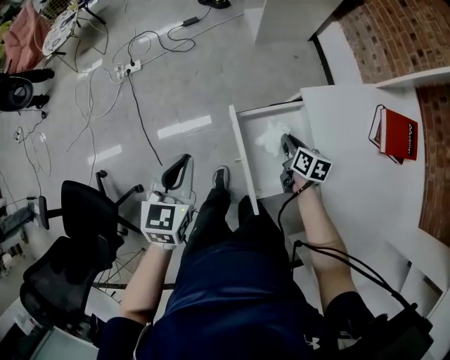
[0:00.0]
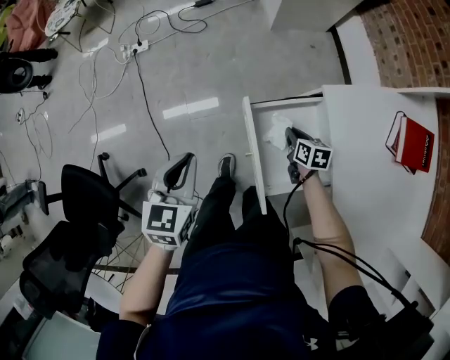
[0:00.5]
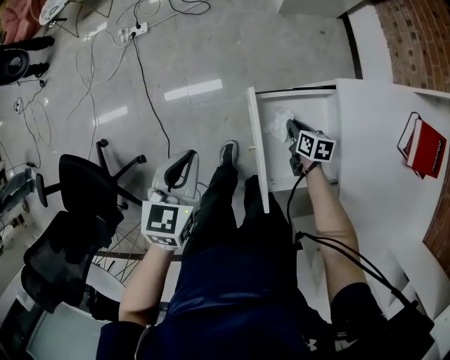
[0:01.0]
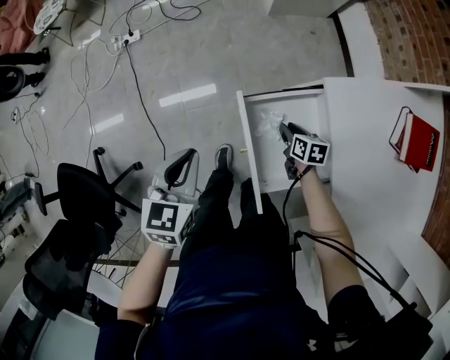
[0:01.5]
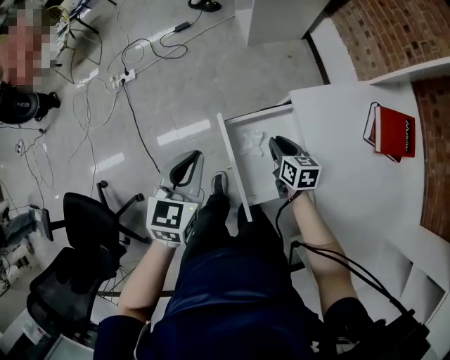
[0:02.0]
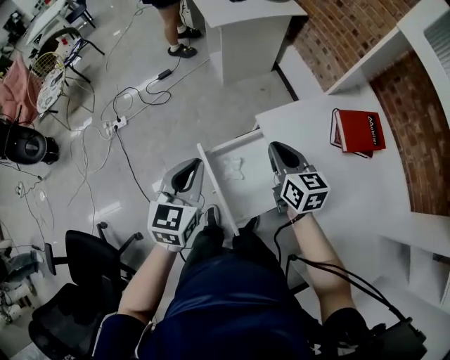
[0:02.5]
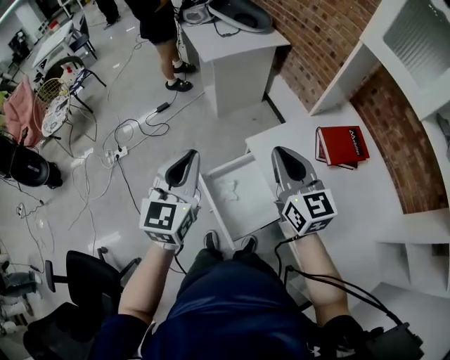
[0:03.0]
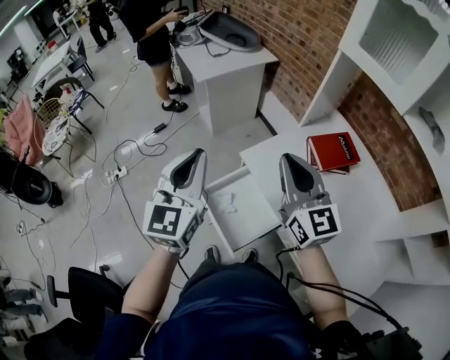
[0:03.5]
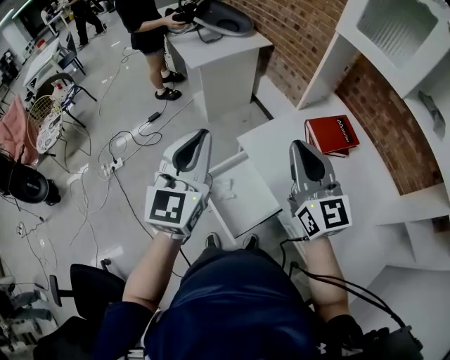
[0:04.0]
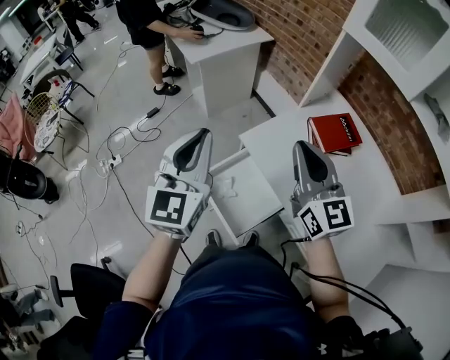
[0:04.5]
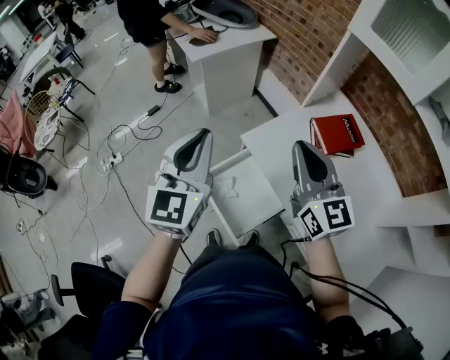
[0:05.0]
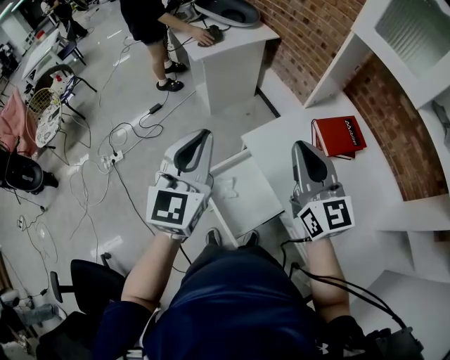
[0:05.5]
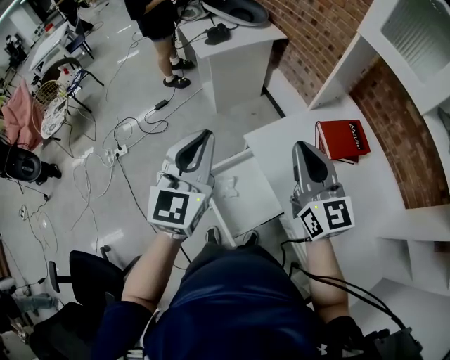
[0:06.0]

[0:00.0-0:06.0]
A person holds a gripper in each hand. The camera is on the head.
0:00.0 to 0:02.0: The right gripper travels downward and back again, roughly 15 cm each way; the left gripper travels to the right by roughly 5 cm.
0:02.0 to 0:04.0: The right gripper travels upward by roughly 40 cm, and points its fingers roughly 50 degrees further upward; the left gripper goes approximately 30 cm upward and to the right, and tilts its fingers about 30 degrees upward.
0:04.0 to 0:06.0: The right gripper ends up some 5 cm from where it was.

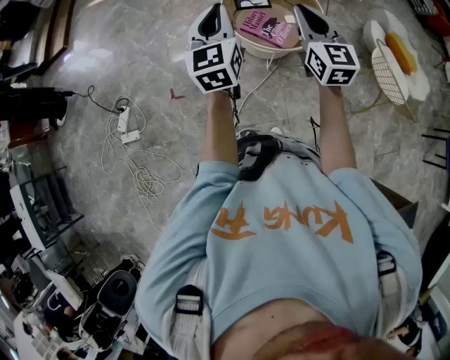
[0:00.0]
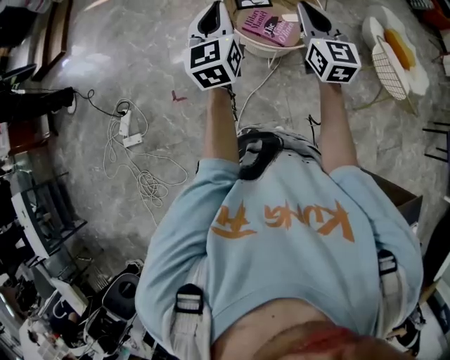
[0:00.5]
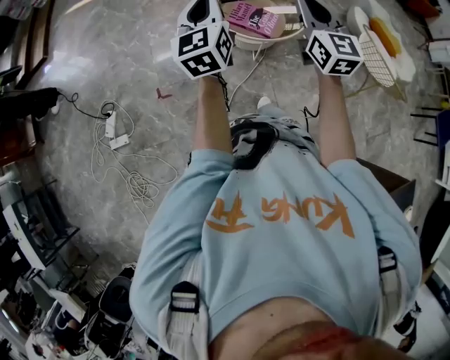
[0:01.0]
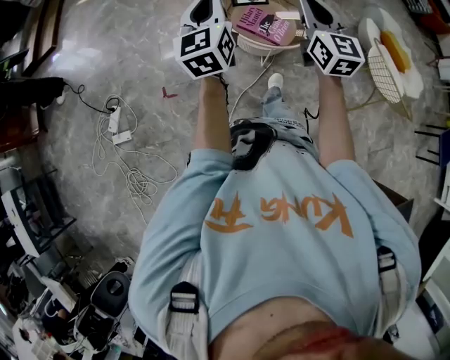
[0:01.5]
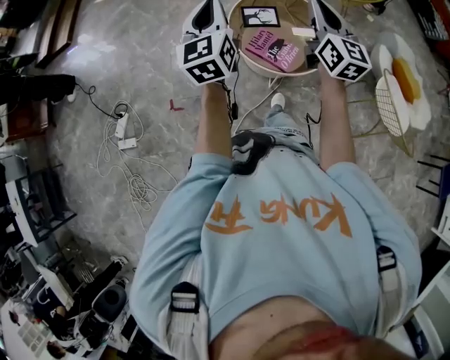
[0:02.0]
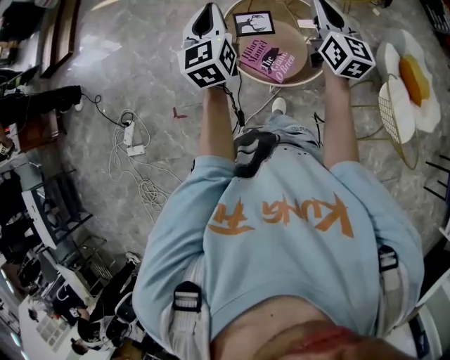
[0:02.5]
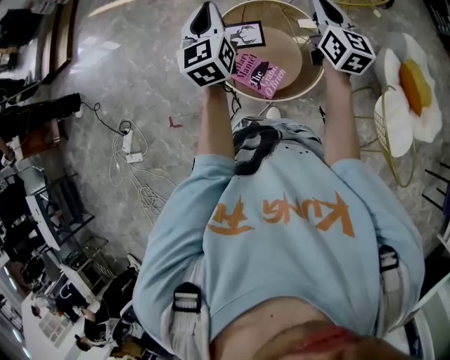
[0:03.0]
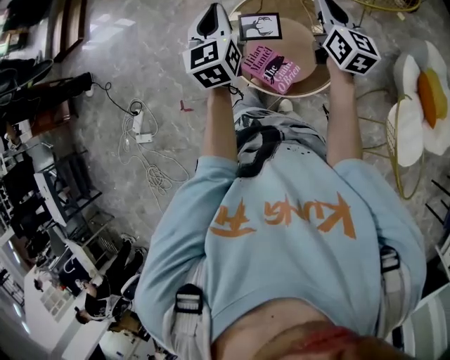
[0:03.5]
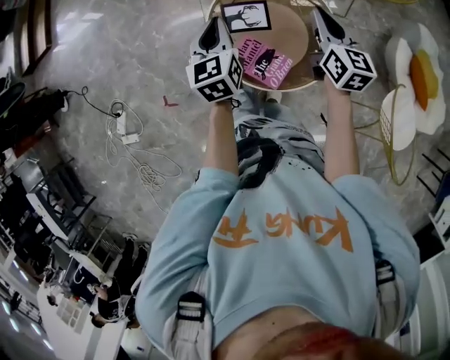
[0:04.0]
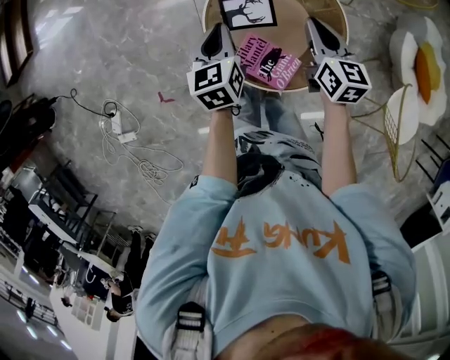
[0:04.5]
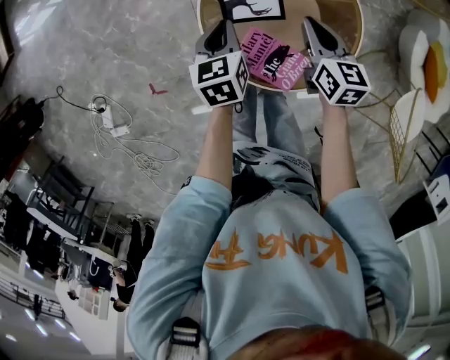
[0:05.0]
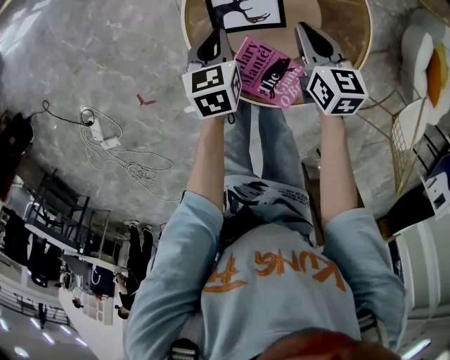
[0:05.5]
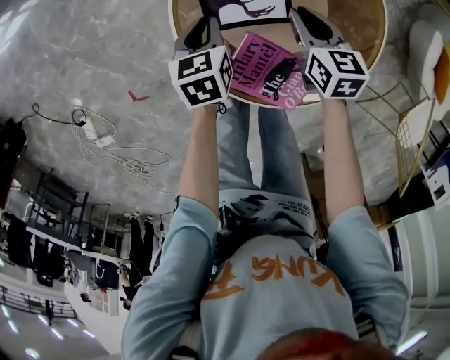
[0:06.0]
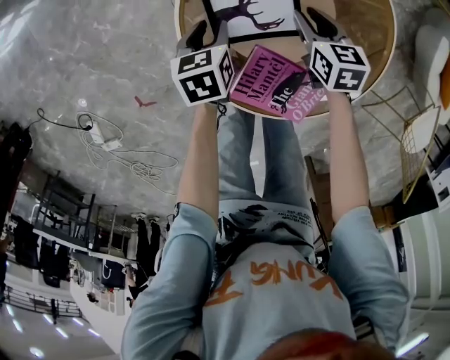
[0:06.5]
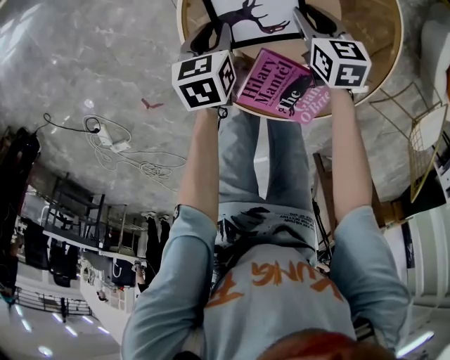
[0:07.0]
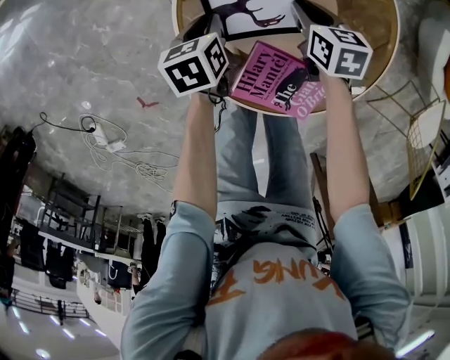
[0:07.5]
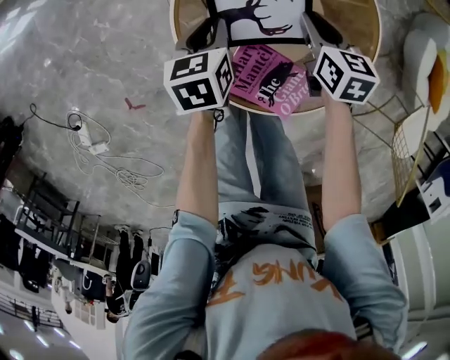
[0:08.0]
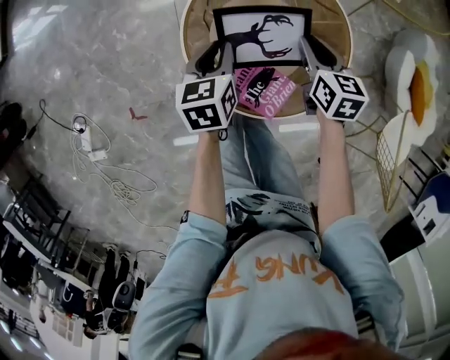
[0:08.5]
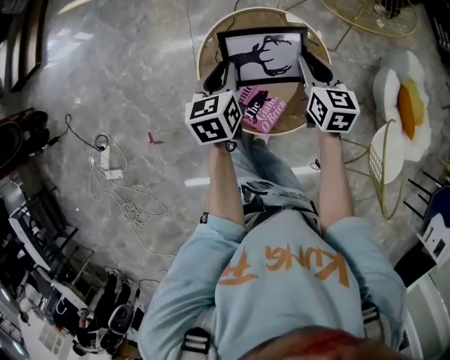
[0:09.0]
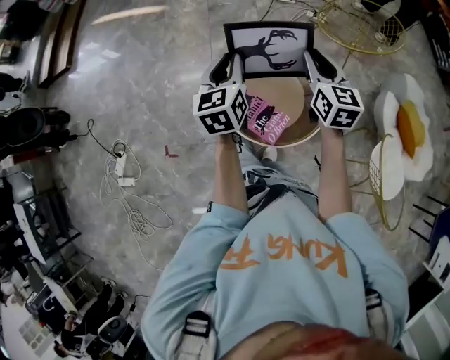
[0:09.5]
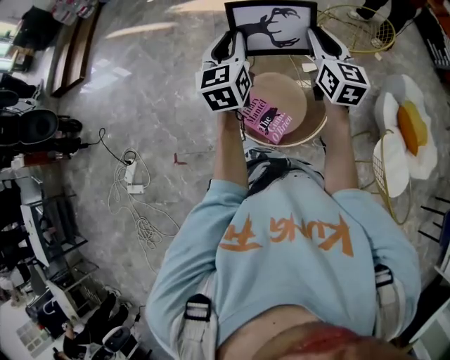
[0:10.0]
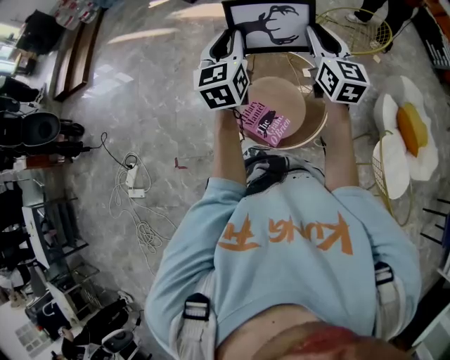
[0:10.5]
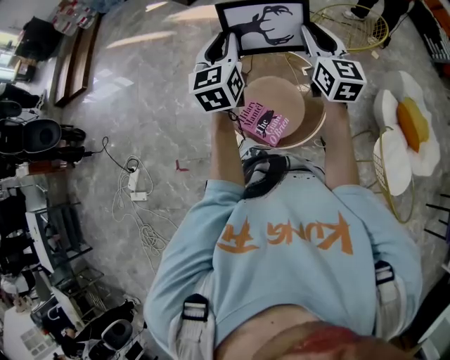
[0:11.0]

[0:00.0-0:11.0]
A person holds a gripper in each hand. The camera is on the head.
0:00.0 to 0:02.0: The two grippers go roughly 15 cm forward.
0:02.0 to 0:03.5: The two grippers go some 30 cm forward and to the right.
0:03.5 to 0:05.5: The grippers both shift downward by approximately 40 cm. The left gripper angles its fingers downward, by approximately 40 degrees; the right gripper tilts its fingers some 40 degrees downward.
0:05.5 to 0:07.5: The two grippers go some 15 cm downward.
0:07.5 to 0:09.0: Both grippers travel together upward, some 35 cm. The left gripper turns by about 30 degrees; the right gripper swivels approximately 30 degrees.
0:09.0 to 0:11.0: The grippers both shift upward by some 30 cm. The right gripper angles its fingers upward, by approximately 30 degrees. Meanwhile the left gripper swivels approximately 30 degrees.

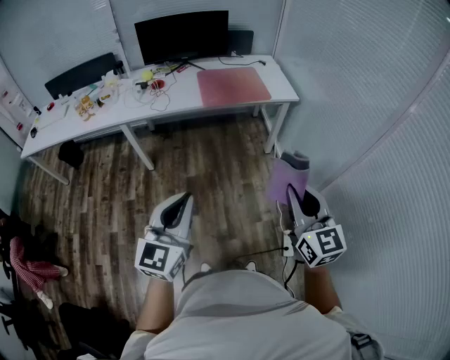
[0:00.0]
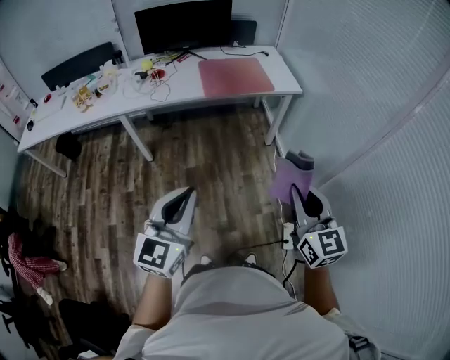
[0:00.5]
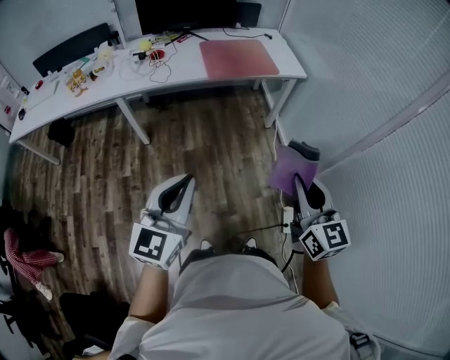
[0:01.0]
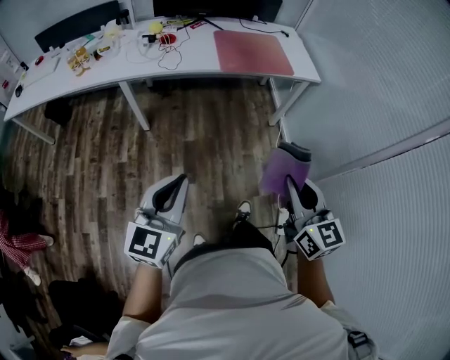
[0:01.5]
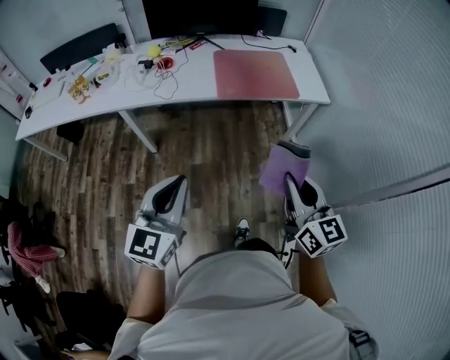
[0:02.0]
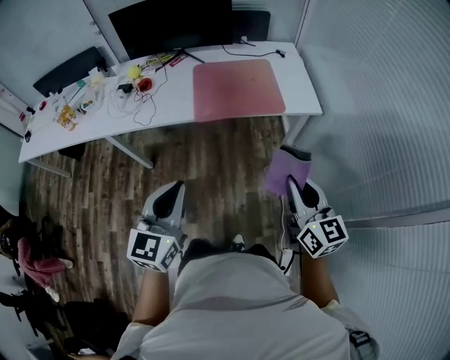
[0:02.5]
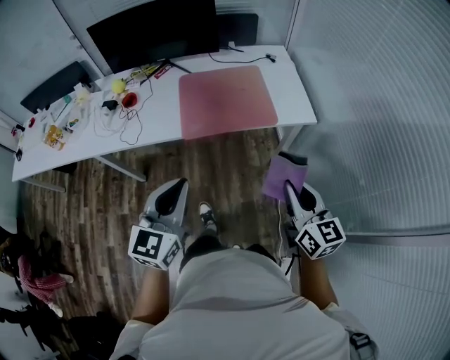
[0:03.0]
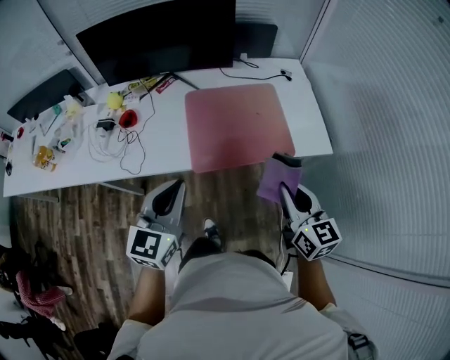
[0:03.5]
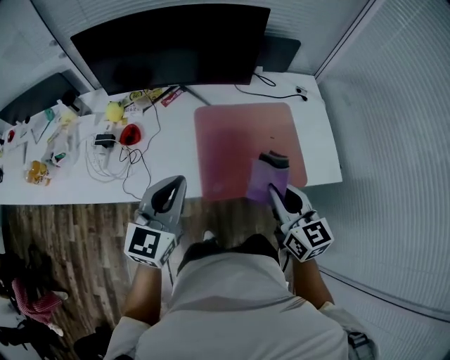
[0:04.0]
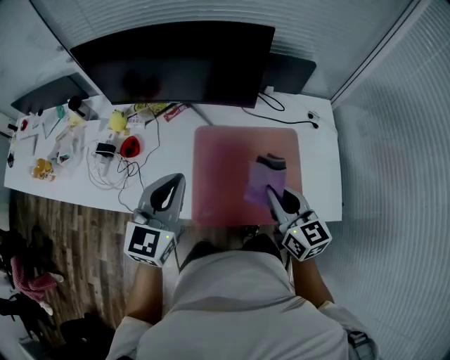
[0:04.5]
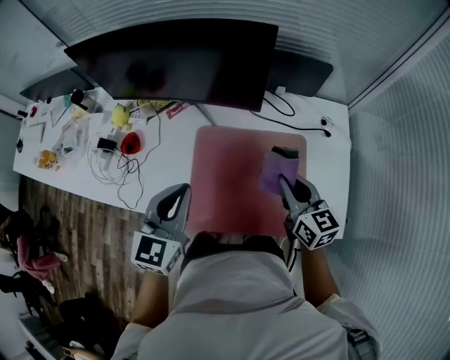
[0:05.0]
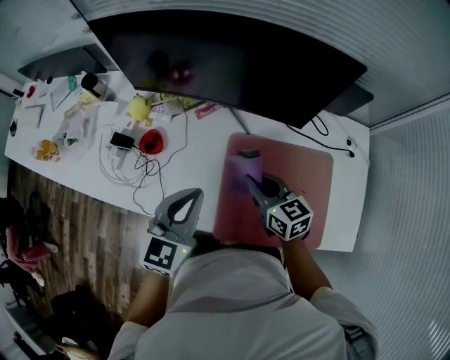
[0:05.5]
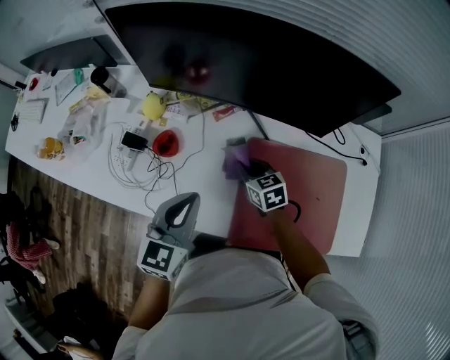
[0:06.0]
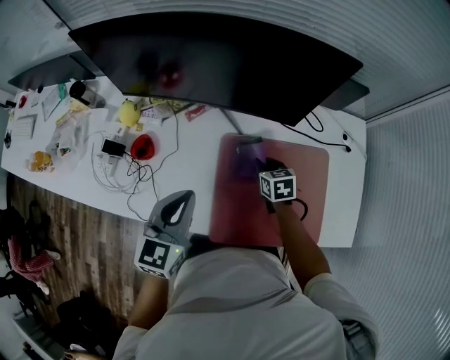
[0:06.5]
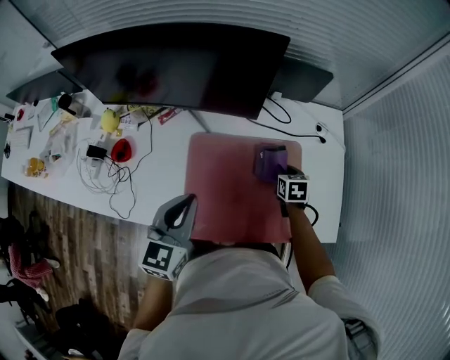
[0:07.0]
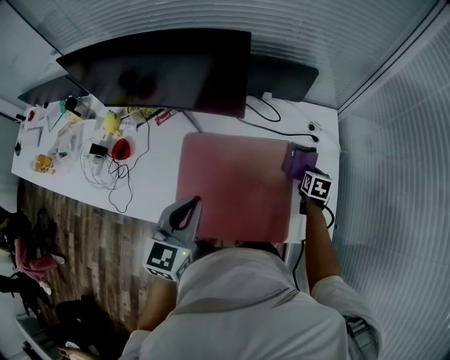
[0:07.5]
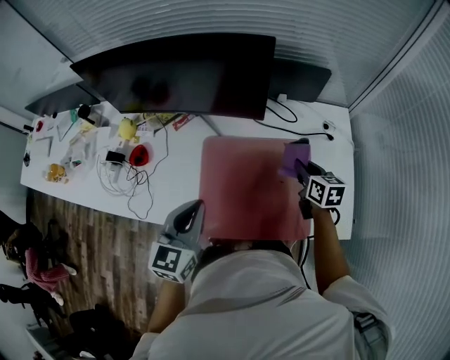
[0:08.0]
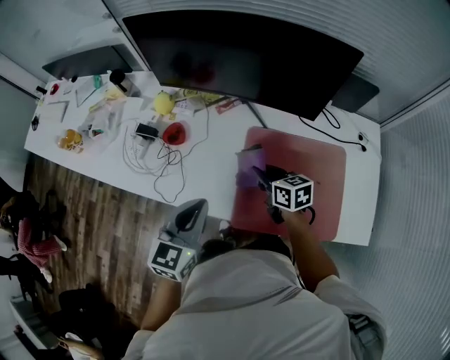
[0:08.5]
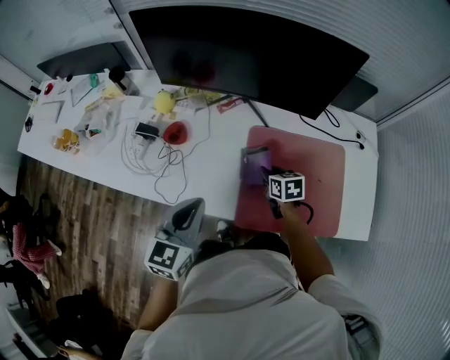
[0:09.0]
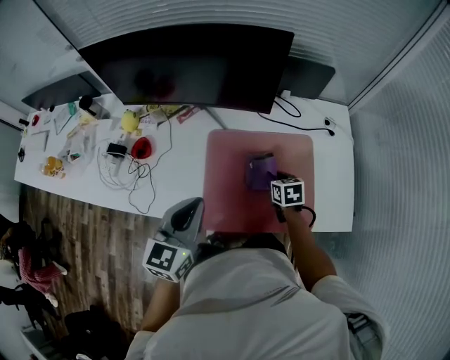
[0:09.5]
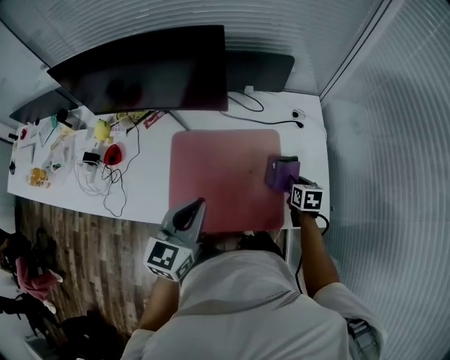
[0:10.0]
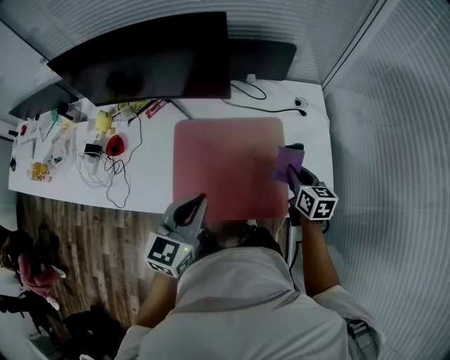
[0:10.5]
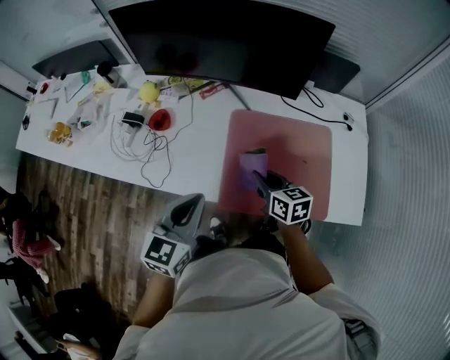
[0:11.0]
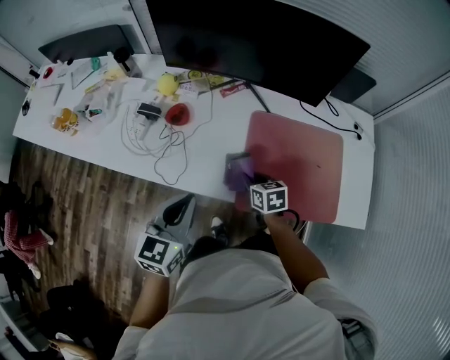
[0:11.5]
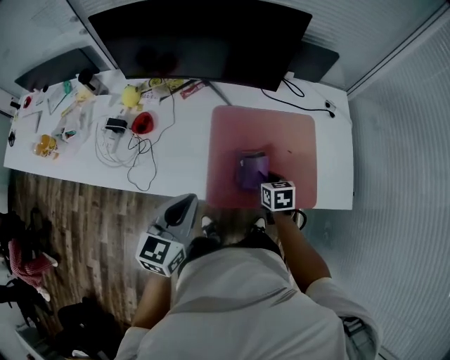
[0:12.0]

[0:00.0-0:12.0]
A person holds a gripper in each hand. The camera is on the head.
0:00.0 to 0:02.0: Both grippers travel together forward, some 25 cm.
0:02.0 to 0:04.0: The pair of grippers is taken forward, approximately 60 cm.
0:04.0 to 0:06.0: The right gripper moves forward, downward and to the left, about 40 cm, and changes its angle by approximately 40 degrees. The left gripper heads forward, downward and to the left, covering roughly 20 cm.
0:06.0 to 0:08.0: The left gripper moves roughly 20 cm. The right gripper shifts by about 40 cm, and turns by about 30 degrees.
0:08.0 to 0:10.0: The right gripper changes its angle by roughly 20 degrees.
0:10.0 to 0:12.0: Both grippers move to the left, roughly 25 cm.
